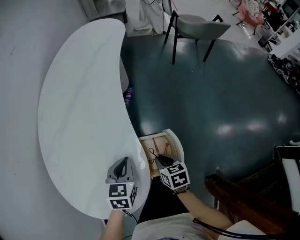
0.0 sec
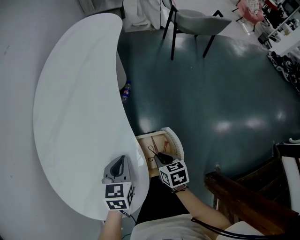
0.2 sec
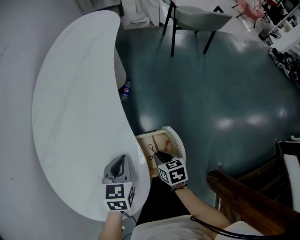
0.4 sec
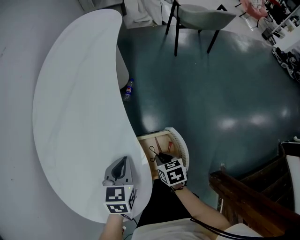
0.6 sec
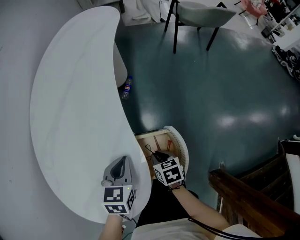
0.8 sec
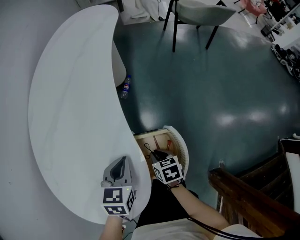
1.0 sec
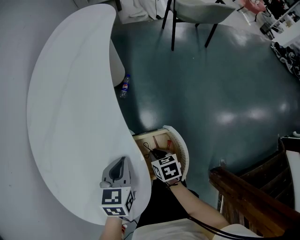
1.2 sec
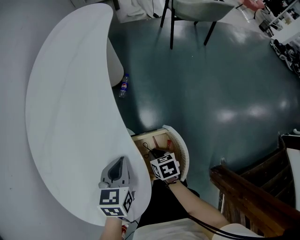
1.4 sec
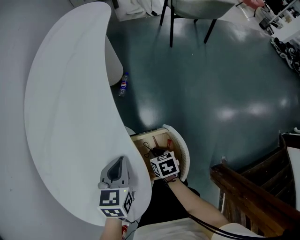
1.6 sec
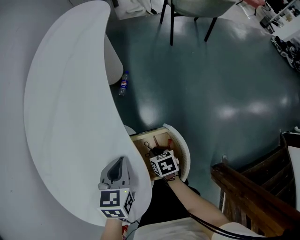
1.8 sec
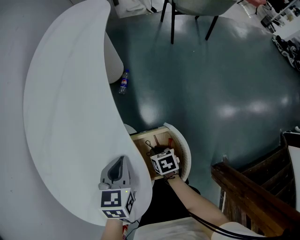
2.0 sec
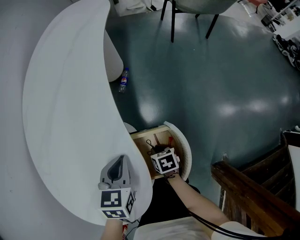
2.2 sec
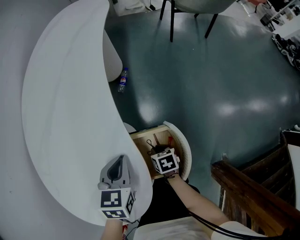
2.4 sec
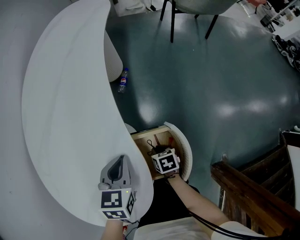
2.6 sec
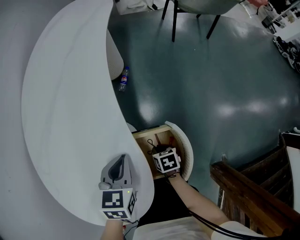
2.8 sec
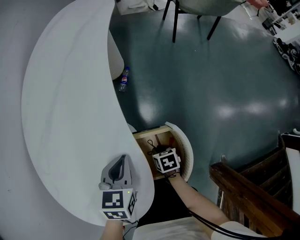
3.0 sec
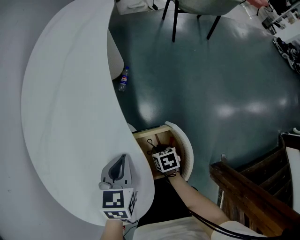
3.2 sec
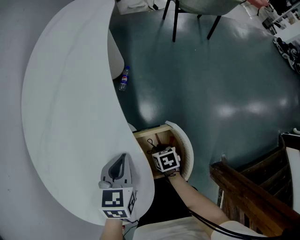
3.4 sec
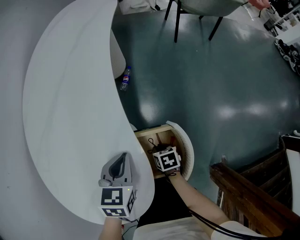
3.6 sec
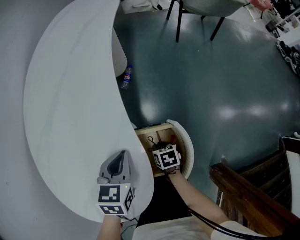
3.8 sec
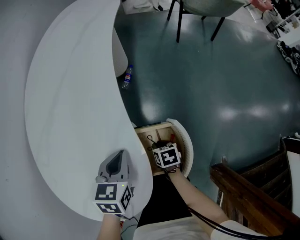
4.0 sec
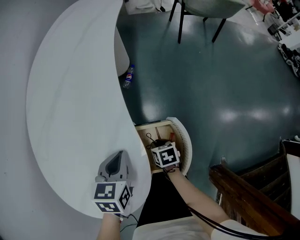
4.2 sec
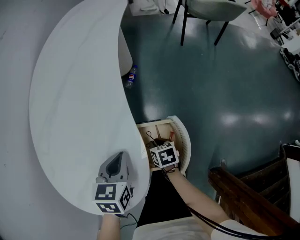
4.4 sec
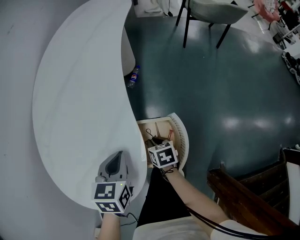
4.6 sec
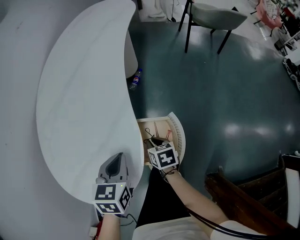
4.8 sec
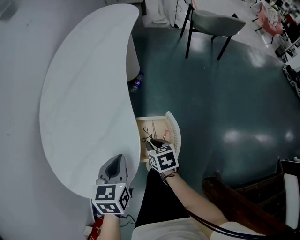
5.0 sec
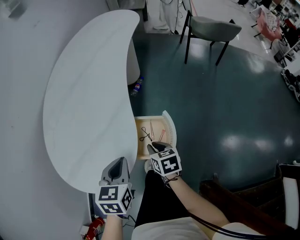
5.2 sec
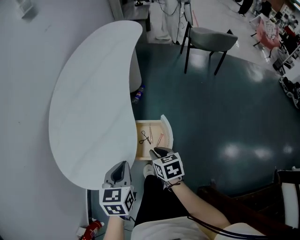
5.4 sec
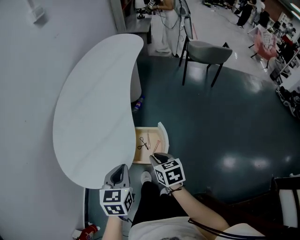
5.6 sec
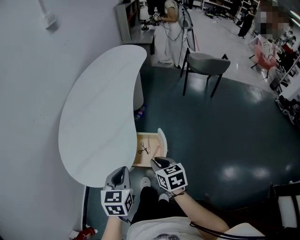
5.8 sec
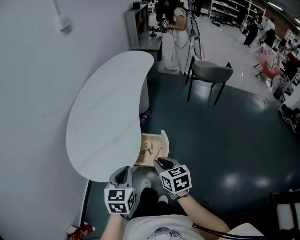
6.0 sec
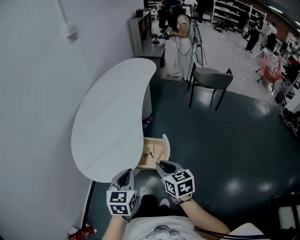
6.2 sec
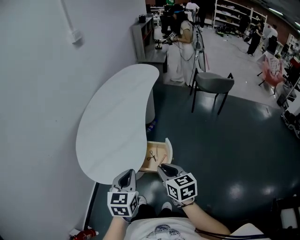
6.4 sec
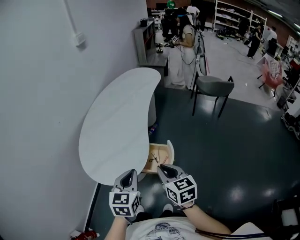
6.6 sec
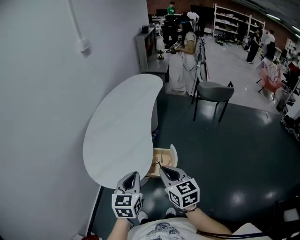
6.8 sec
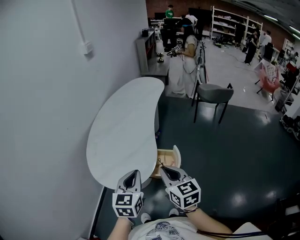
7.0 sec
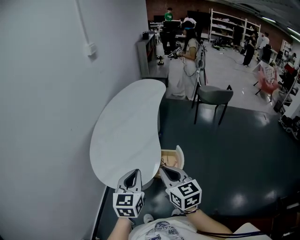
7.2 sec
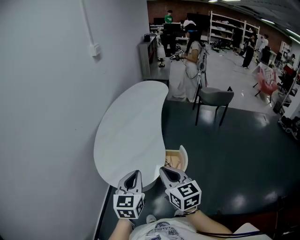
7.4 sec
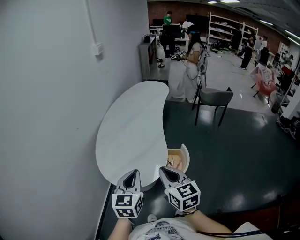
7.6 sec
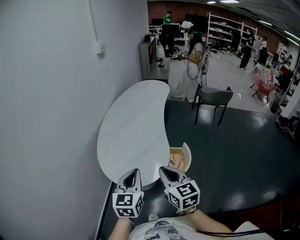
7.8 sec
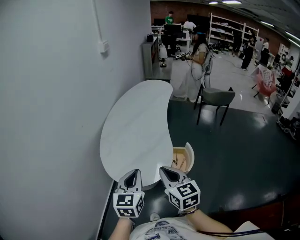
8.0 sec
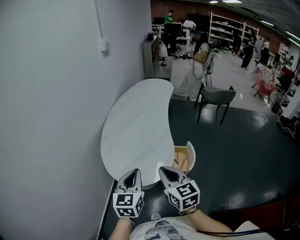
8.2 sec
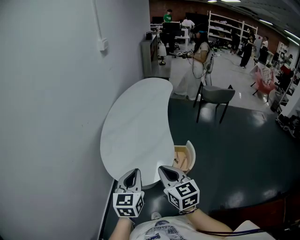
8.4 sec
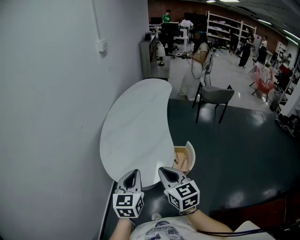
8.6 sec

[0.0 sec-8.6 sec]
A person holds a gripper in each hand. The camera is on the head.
0.0 sec to 1.4 sec: The right gripper shifts approximately 10 cm downward.
1.4 sec to 2.8 sec: The right gripper moves downward, roughly 5 cm.
2.8 sec to 4.4 sec: The grippers move only a little.
4.4 sec to 5.8 sec: The right gripper heads upward and backward, covering some 30 cm, and changes its angle by about 30 degrees. The left gripper shifts some 25 cm backward and upward.
5.8 sec to 7.2 sec: The two grippers go some 25 cm upward and to the left. The right gripper changes its angle by approximately 30 degrees.
7.2 sec to 8.6 sec: The two grippers go approximately 15 cm to the left.

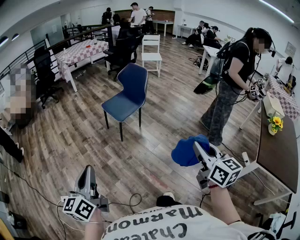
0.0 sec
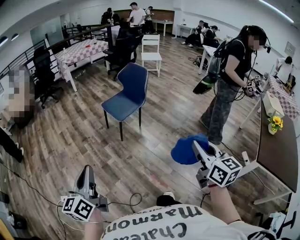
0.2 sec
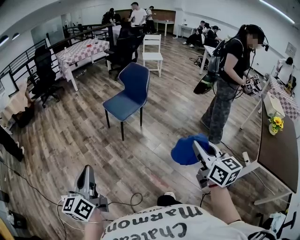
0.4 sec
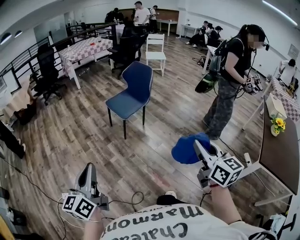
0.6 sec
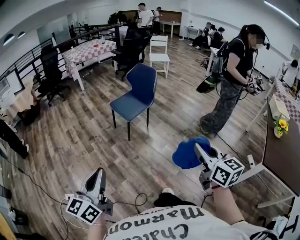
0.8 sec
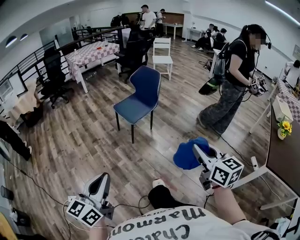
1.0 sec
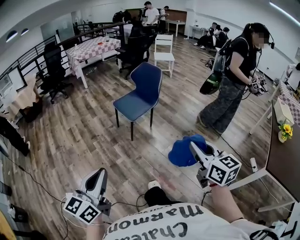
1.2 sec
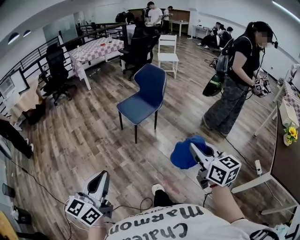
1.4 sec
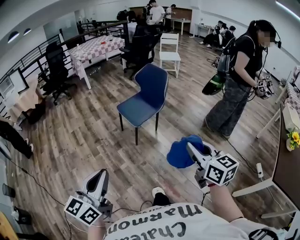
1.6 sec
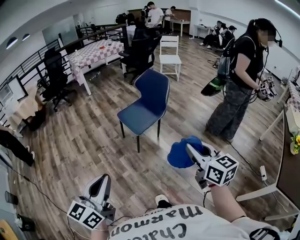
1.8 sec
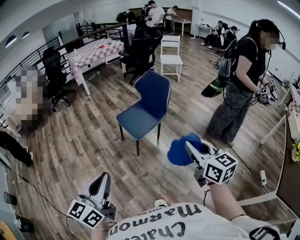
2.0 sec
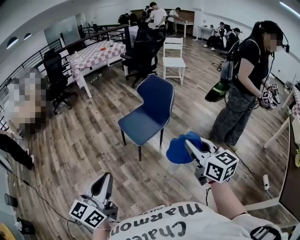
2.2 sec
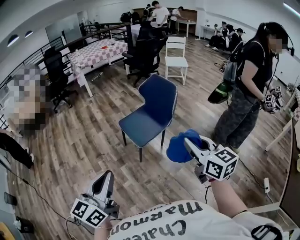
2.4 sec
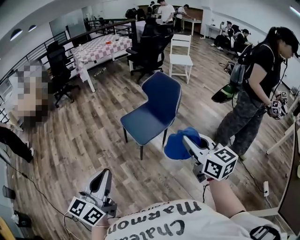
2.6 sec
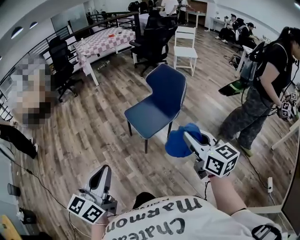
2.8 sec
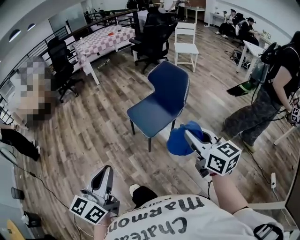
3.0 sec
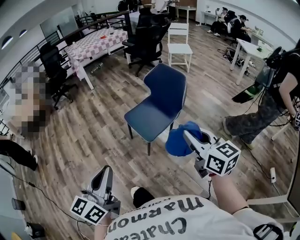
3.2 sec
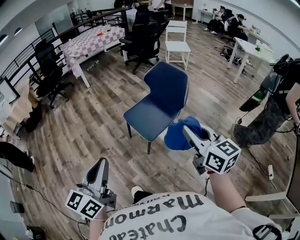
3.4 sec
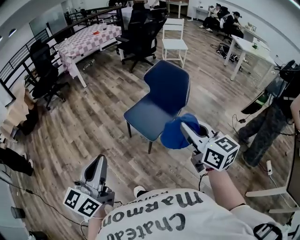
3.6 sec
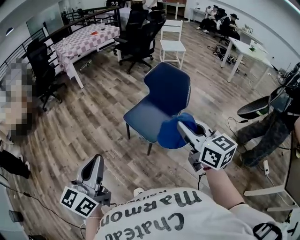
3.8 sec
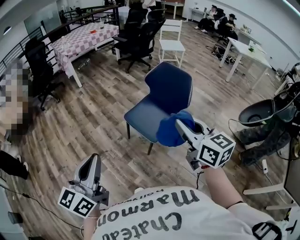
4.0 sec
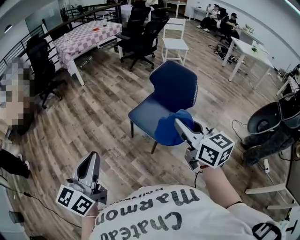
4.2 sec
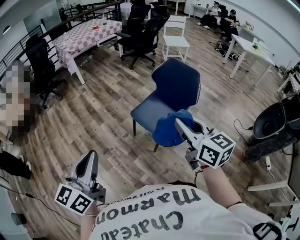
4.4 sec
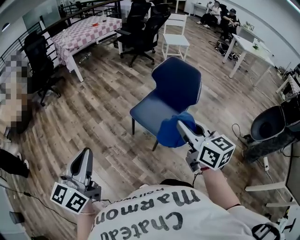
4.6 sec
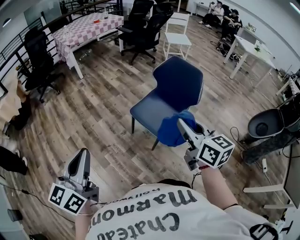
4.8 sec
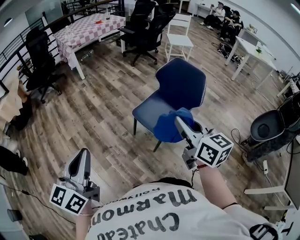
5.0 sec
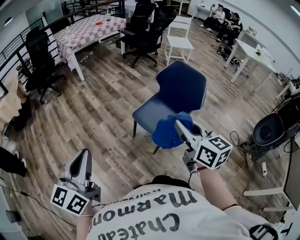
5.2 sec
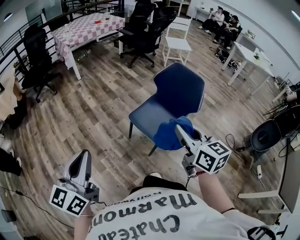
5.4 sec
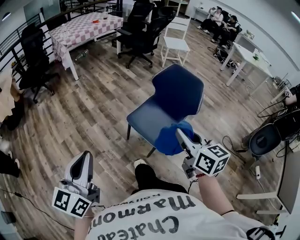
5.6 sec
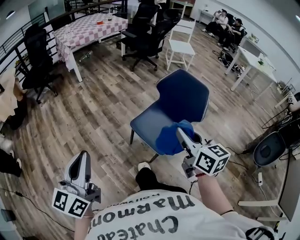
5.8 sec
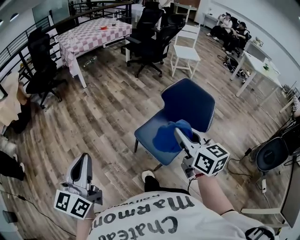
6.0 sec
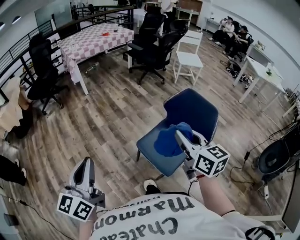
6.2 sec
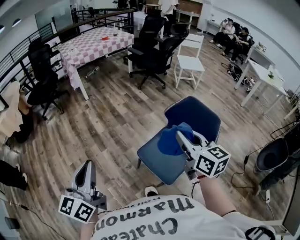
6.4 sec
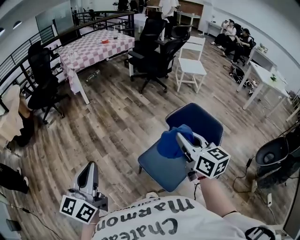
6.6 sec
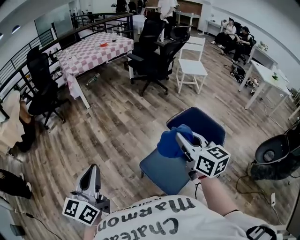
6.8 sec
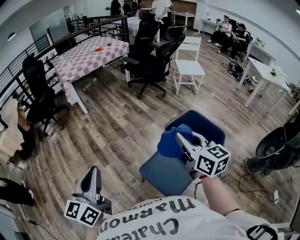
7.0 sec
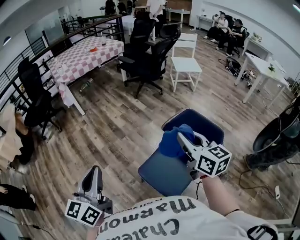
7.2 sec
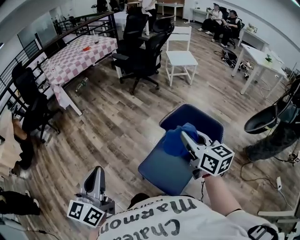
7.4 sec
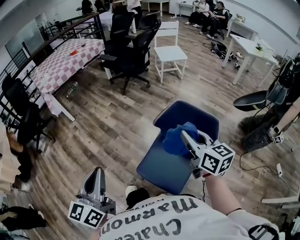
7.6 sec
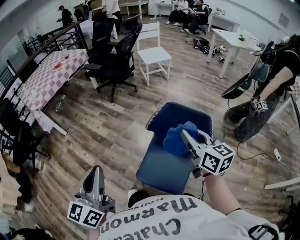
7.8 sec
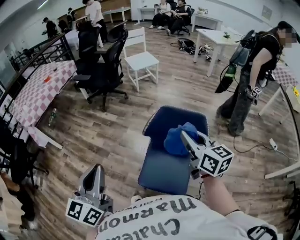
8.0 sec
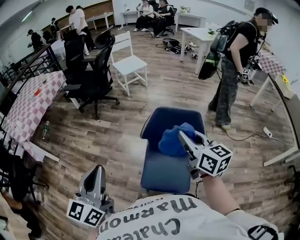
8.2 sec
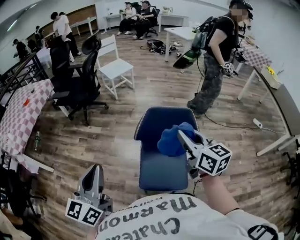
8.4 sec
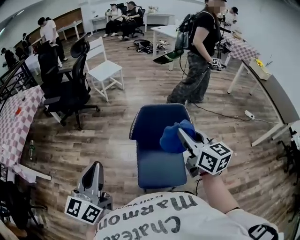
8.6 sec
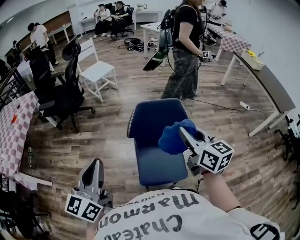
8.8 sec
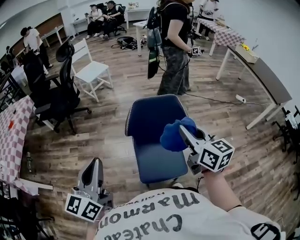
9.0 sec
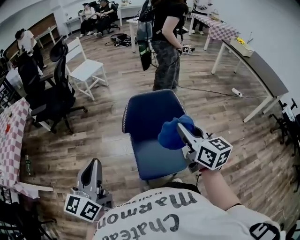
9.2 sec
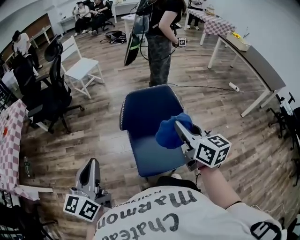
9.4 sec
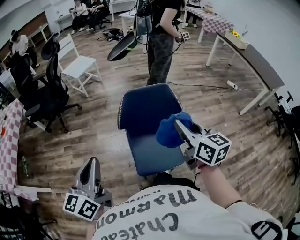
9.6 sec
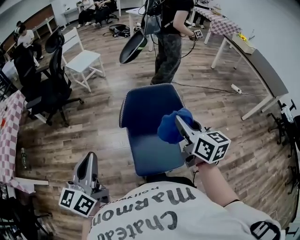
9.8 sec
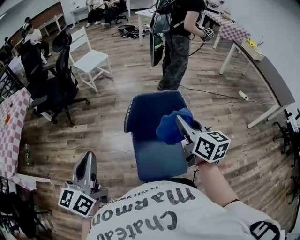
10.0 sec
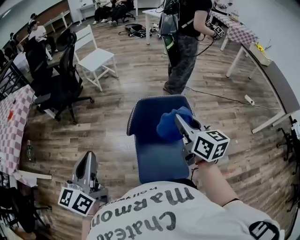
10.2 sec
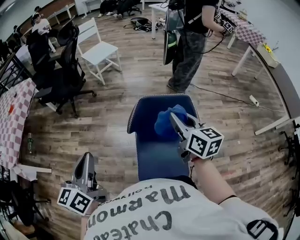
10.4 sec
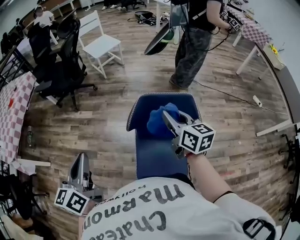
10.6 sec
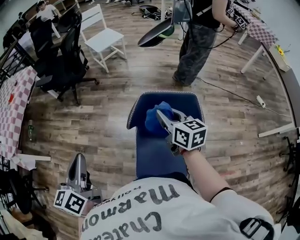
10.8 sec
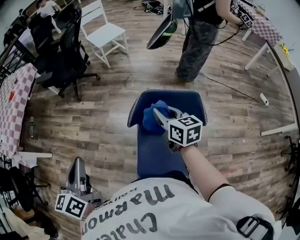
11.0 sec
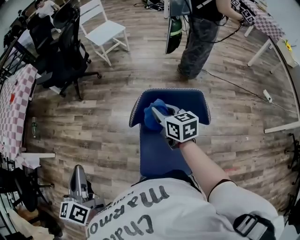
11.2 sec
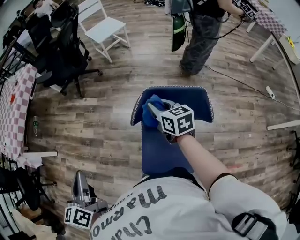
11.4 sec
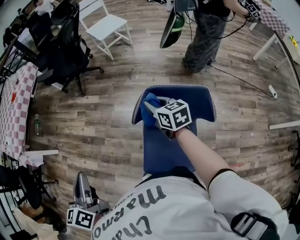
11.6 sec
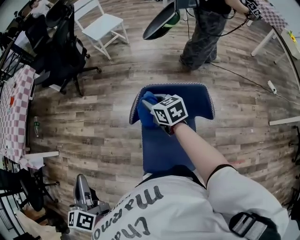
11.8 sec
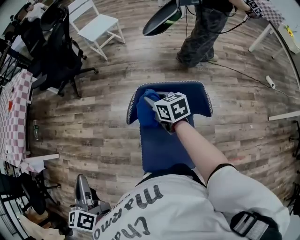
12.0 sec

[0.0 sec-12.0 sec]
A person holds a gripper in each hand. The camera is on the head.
0.0 sec to 1.6 sec: The right gripper shifts roughly 20 cm forward and to the left; the left gripper travels forward by about 10 cm.
1.6 sec to 3.0 sec: Both grippers move forward, some 25 cm.
3.0 sec to 4.4 sec: Both grippers move to the left and forward, roughly 25 cm.
4.4 sec to 6.0 sec: Both grippers move forward, about 15 cm.
6.0 sec to 7.6 sec: Both grippers move forward and to the right, approximately 30 cm.
7.6 sec to 9.0 sec: The left gripper moves approximately 15 cm, and rotates roughly 40 degrees. The right gripper moves approximately 10 cm, and rotates approximately 40 degrees.
9.0 sec to 10.4 sec: The left gripper goes roughly 10 cm forward, while the right gripper shifts some 15 cm forward and downward.
10.4 sec to 12.0 sec: The left gripper travels downward by some 5 cm, and rotates some 20 degrees. Meanwhile the right gripper is displaced downward and forward by some 25 cm, and rotates approximately 30 degrees.

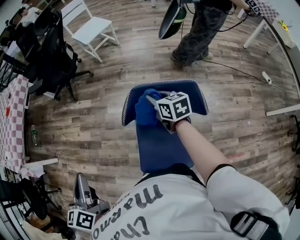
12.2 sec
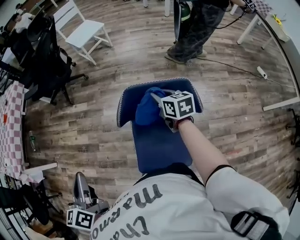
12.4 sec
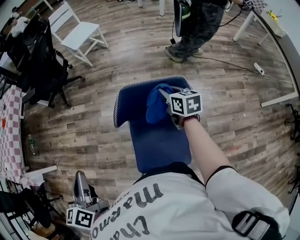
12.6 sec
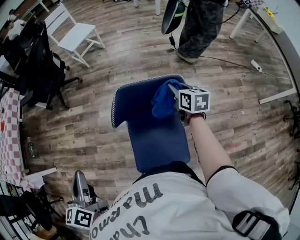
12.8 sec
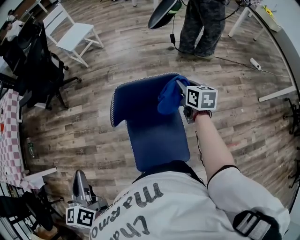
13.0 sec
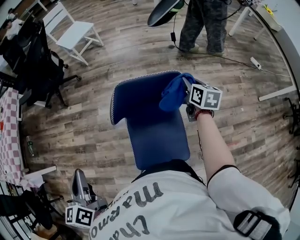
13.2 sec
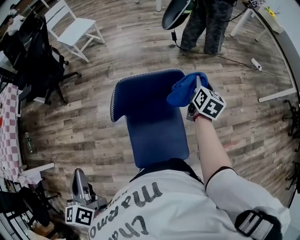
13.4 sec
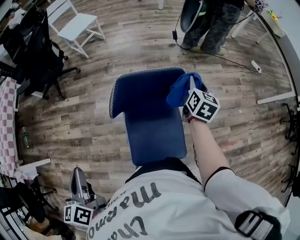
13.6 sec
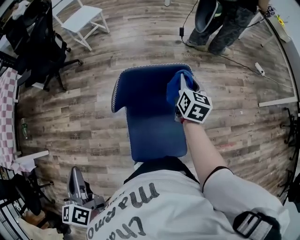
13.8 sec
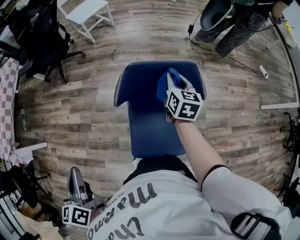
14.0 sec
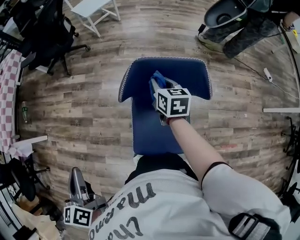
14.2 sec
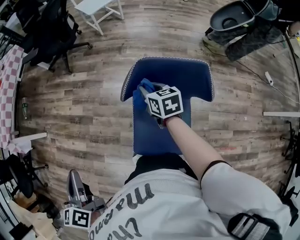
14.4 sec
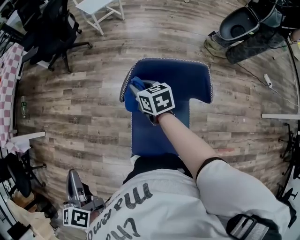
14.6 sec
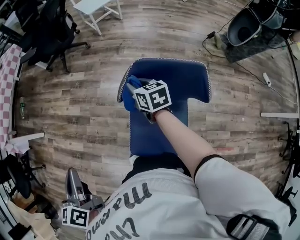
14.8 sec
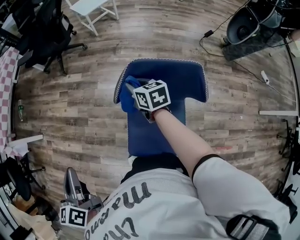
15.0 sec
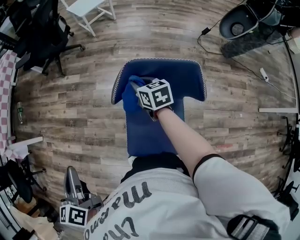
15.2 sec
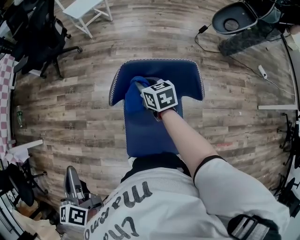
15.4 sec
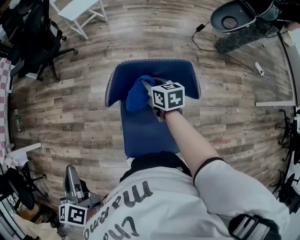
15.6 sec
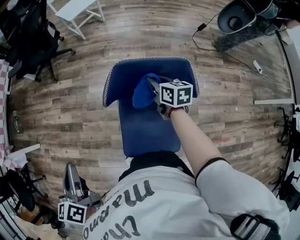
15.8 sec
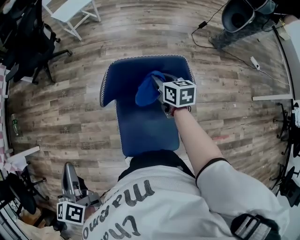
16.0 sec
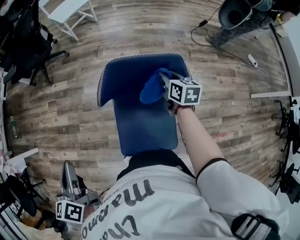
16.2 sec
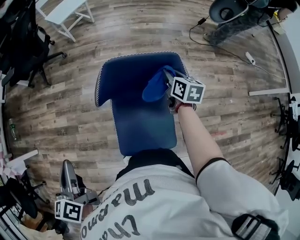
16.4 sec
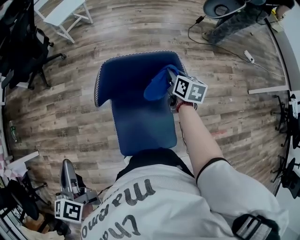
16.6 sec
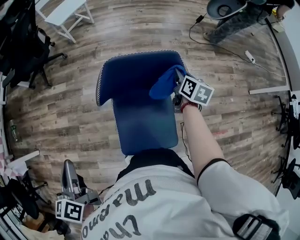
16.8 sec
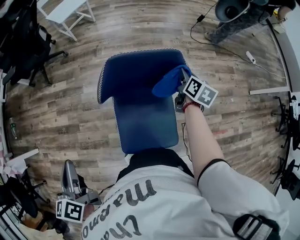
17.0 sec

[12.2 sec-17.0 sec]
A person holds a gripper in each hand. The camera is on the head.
12.2 sec to 13.8 sec: The right gripper rotates about 40 degrees.
13.8 sec to 15.4 sec: The right gripper shifts by approximately 25 cm, and turns by approximately 40 degrees.
15.4 sec to 17.0 sec: The right gripper moves some 25 cm, and rotates some 50 degrees.
